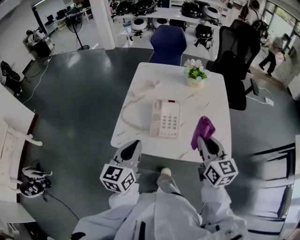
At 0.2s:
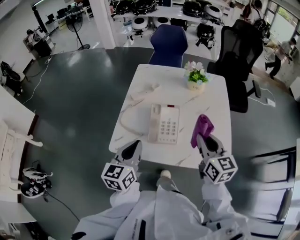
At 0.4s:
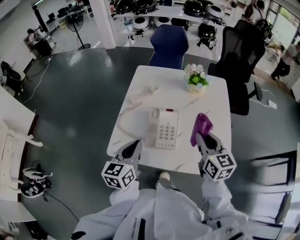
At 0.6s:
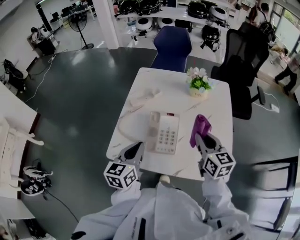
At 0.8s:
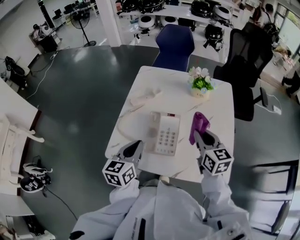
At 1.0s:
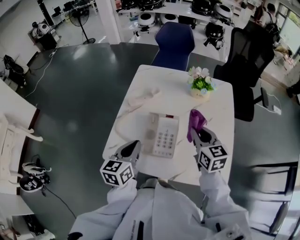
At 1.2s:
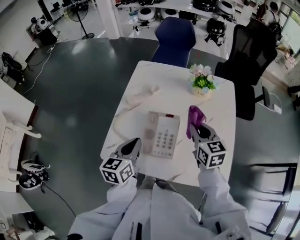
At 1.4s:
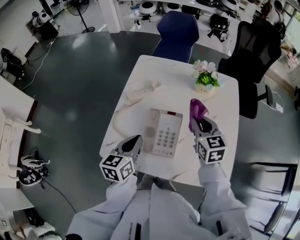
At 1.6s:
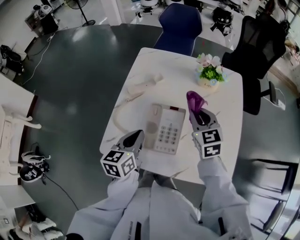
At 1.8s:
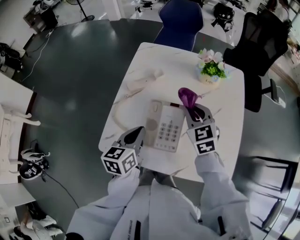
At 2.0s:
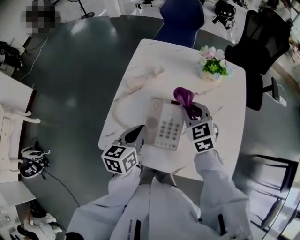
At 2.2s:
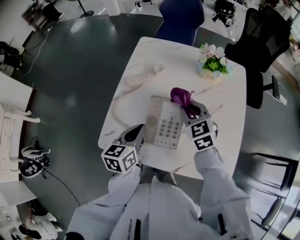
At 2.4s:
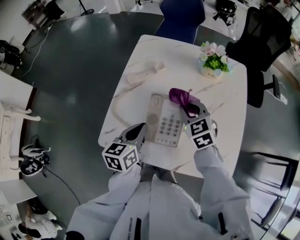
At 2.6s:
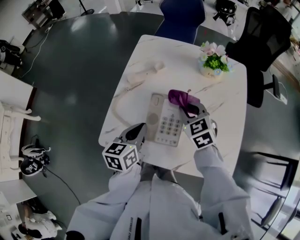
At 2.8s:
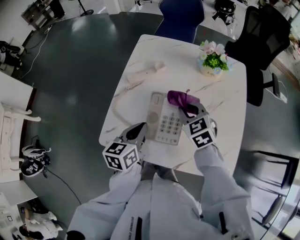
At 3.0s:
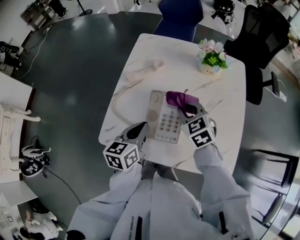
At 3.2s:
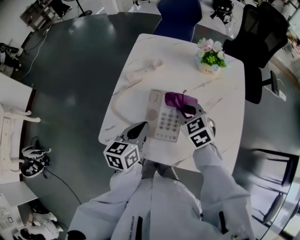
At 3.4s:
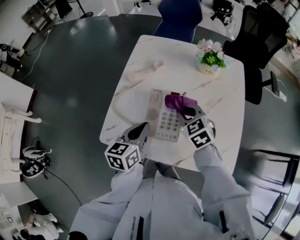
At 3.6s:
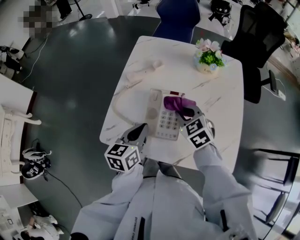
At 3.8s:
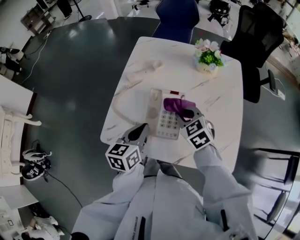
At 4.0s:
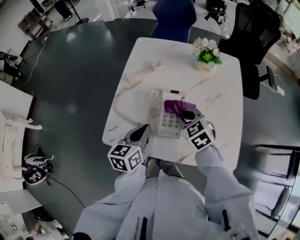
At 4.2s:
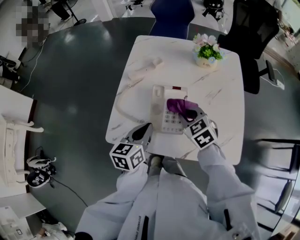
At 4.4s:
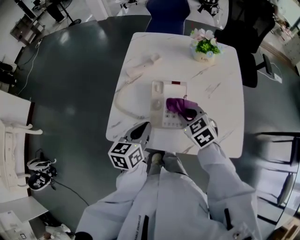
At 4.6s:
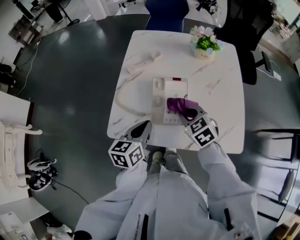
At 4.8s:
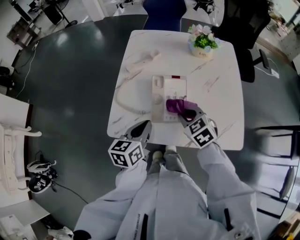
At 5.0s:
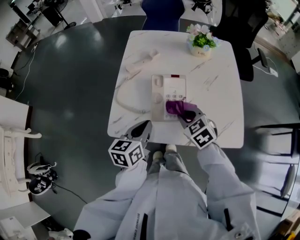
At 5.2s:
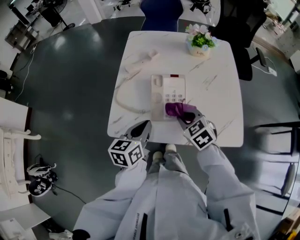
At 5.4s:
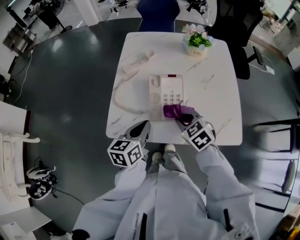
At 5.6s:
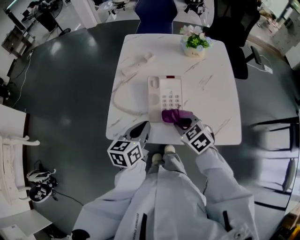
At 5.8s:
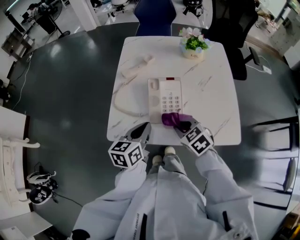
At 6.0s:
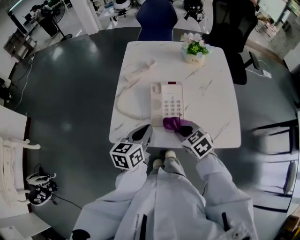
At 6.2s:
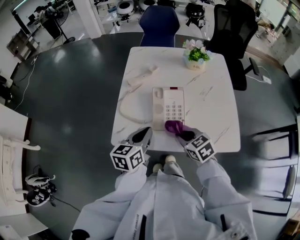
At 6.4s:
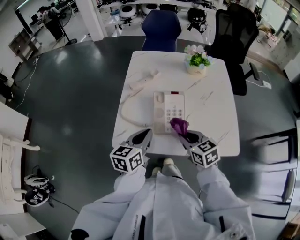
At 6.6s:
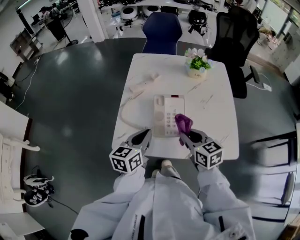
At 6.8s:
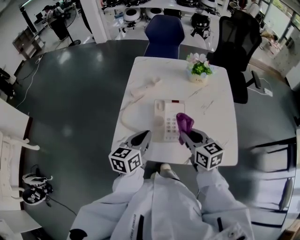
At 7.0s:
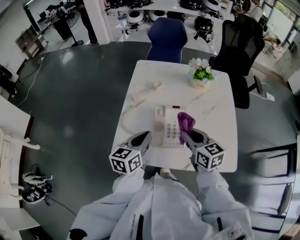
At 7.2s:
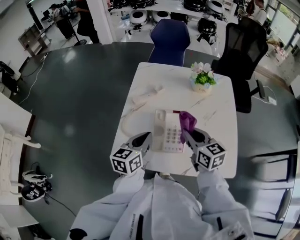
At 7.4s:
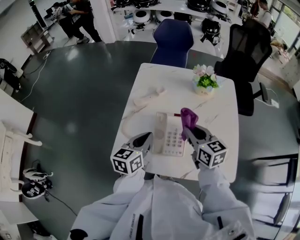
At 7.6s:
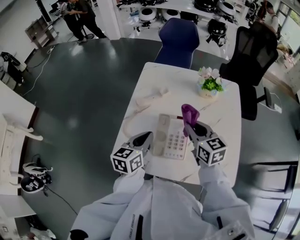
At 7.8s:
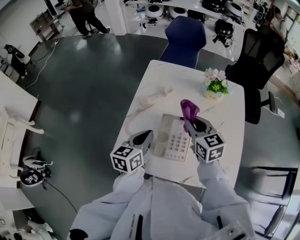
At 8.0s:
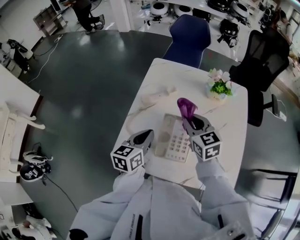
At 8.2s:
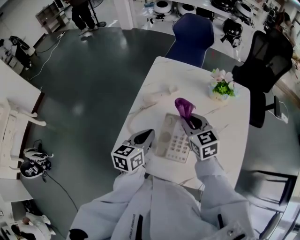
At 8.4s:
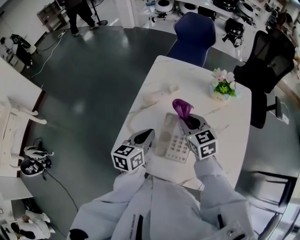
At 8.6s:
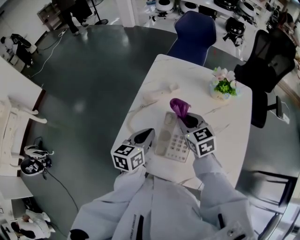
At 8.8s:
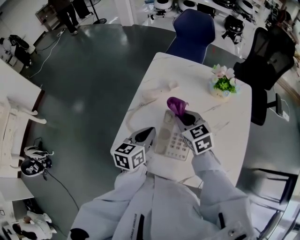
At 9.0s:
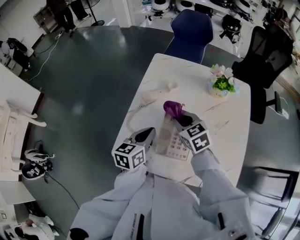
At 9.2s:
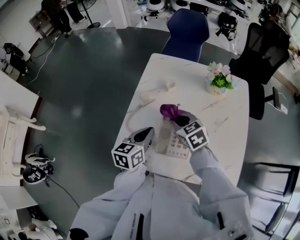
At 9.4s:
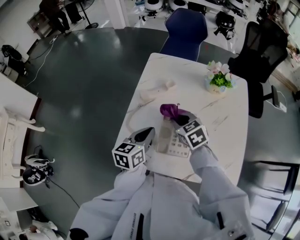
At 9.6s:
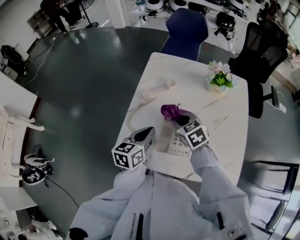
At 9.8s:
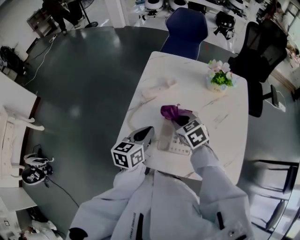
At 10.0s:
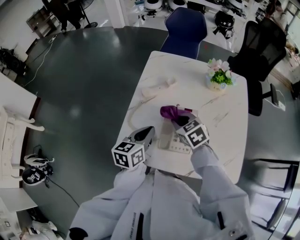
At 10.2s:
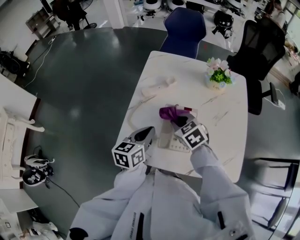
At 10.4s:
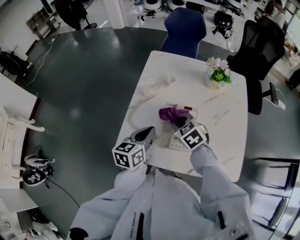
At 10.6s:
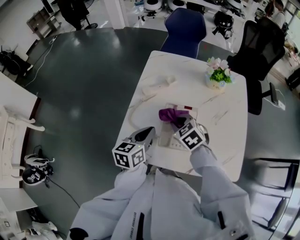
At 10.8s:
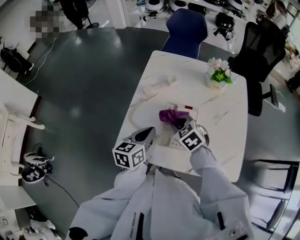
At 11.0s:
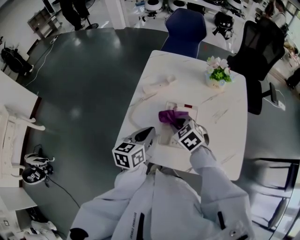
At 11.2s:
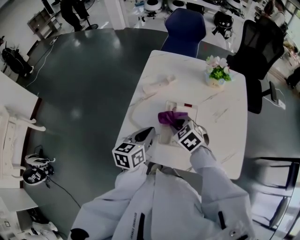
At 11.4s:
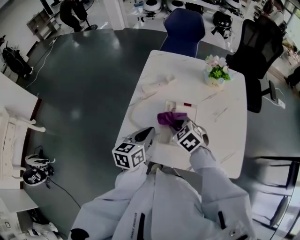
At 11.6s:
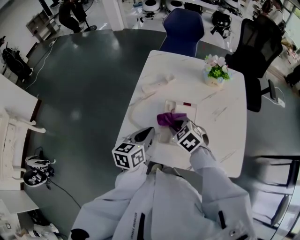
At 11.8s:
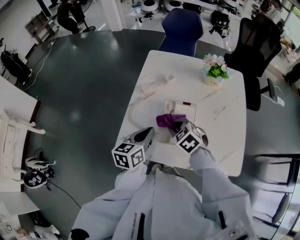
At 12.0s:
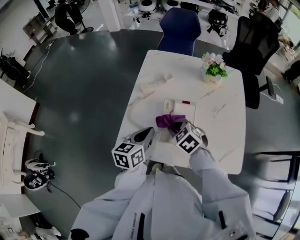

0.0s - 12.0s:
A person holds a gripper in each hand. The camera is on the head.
0.0s - 1.6s: Both grippers travel together forward and downward, about 20 cm. The right gripper turns by roughly 30 degrees.
1.6s - 3.0s: The right gripper moves downward and to the left, roughly 10 cm.
3.0s - 4.4s: The right gripper is displaced backward by about 10 cm.
4.4s - 6.0s: The right gripper goes roughly 10 cm backward.
6.0s - 7.6s: The right gripper travels forward and upward by roughly 20 cm, and swivels about 30 degrees, while the left gripper moves forward, approximately 10 cm.
7.6s - 9.0s: The right gripper moves to the left and downward, roughly 10 cm, and changes its angle by about 20 degrees.
9.0s - 10.4s: The right gripper ends up approximately 5 cm from where it was.
10.4s - 12.0s: The right gripper moves backward, roughly 5 cm.

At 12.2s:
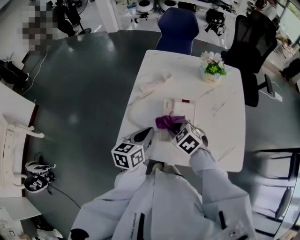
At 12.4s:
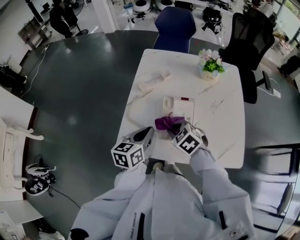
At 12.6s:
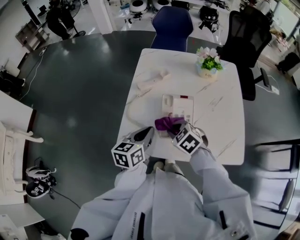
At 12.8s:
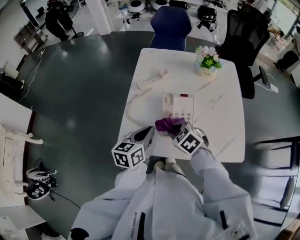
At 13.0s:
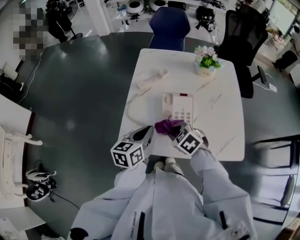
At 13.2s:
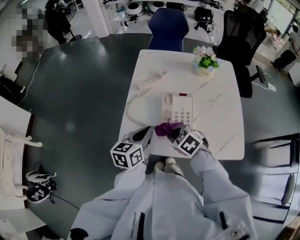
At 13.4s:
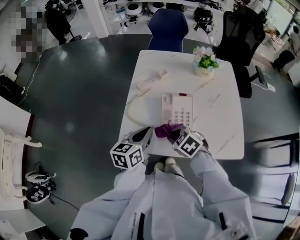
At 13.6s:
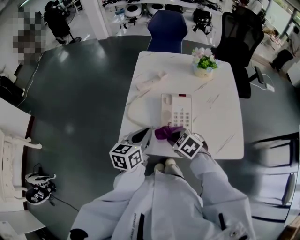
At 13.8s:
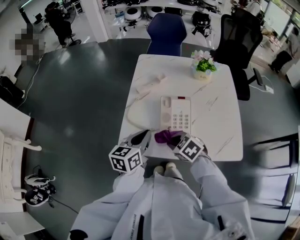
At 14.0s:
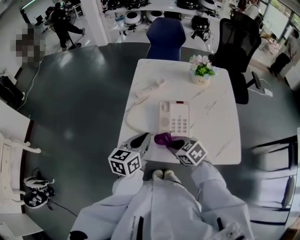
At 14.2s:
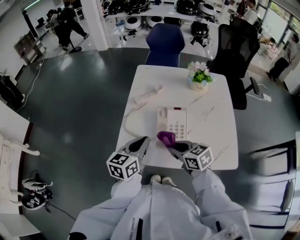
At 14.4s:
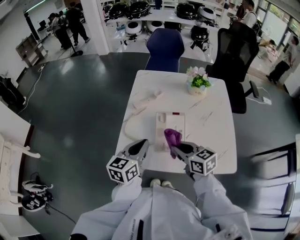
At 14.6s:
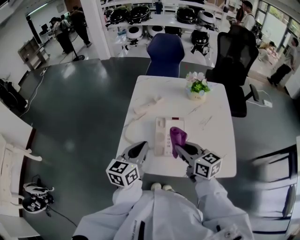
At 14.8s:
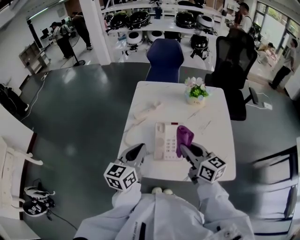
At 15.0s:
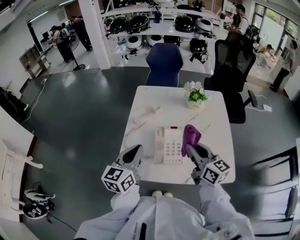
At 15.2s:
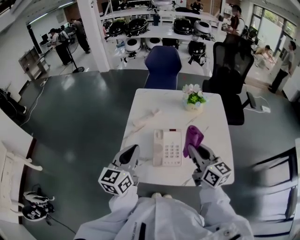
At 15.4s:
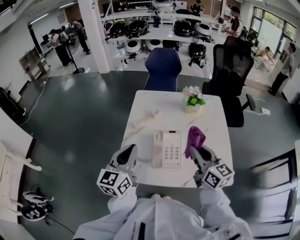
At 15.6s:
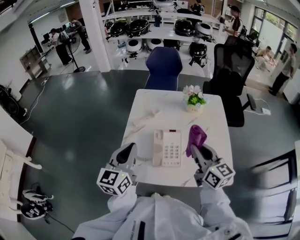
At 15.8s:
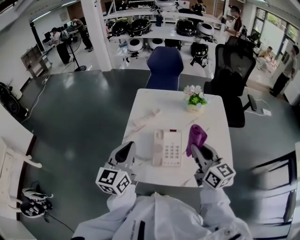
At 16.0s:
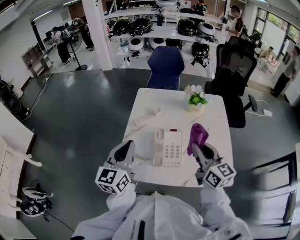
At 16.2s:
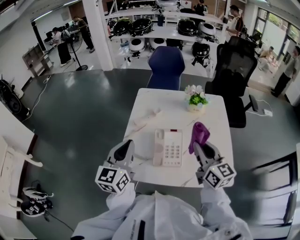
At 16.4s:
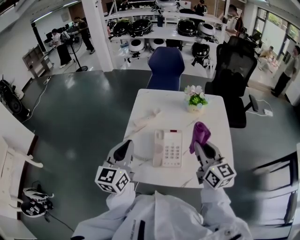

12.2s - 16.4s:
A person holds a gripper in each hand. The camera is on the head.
12.2s - 13.6s: The right gripper goes roughly 10 cm backward.
13.6s - 15.0s: The left gripper shifts roughly 10 cm upward, while the right gripper moves upward and to the right, some 25 cm, and tips its fingers upward by approximately 50 degrees.
15.0s - 16.4s: The left gripper ends up approximately 5 cm from where it was. Meanwhile the right gripper changes place by about 5 cm.

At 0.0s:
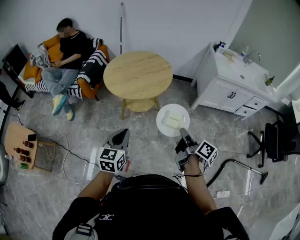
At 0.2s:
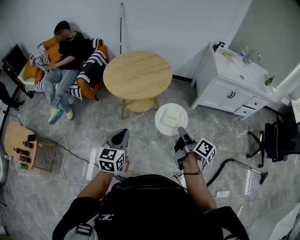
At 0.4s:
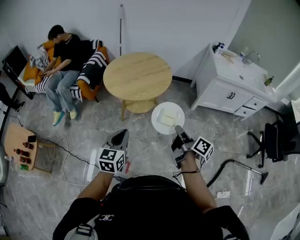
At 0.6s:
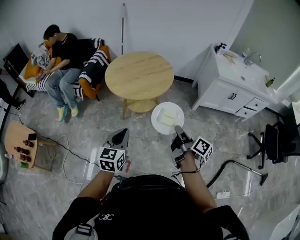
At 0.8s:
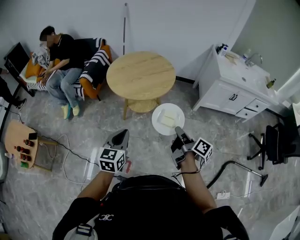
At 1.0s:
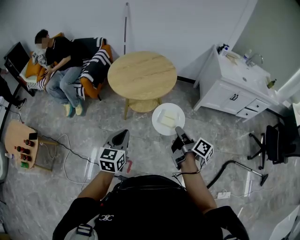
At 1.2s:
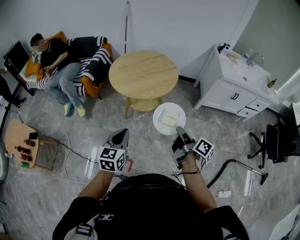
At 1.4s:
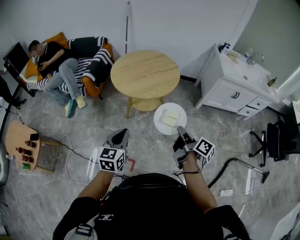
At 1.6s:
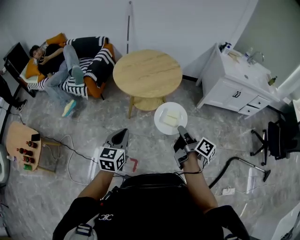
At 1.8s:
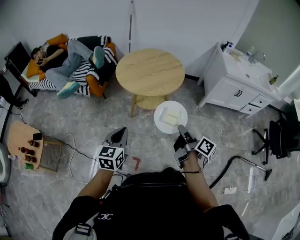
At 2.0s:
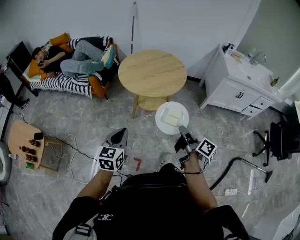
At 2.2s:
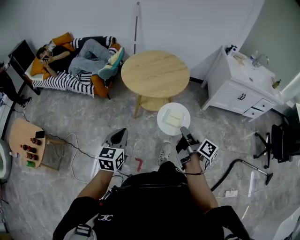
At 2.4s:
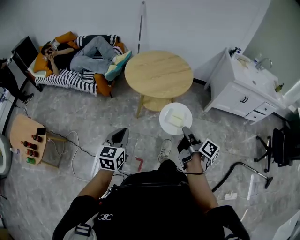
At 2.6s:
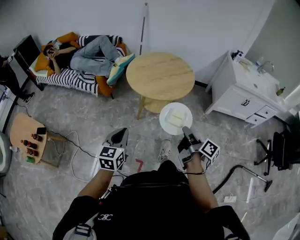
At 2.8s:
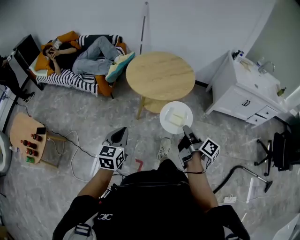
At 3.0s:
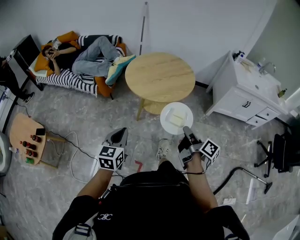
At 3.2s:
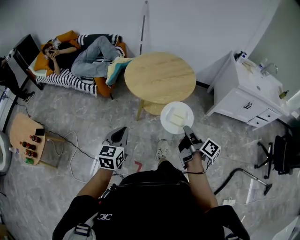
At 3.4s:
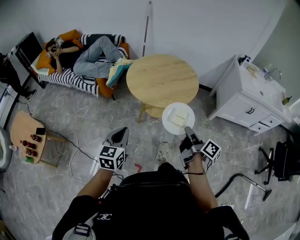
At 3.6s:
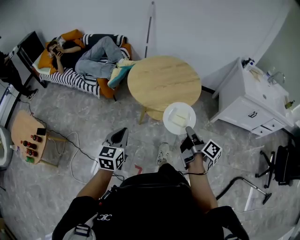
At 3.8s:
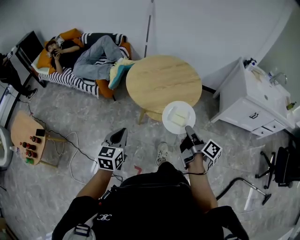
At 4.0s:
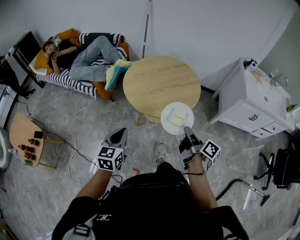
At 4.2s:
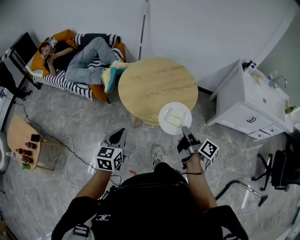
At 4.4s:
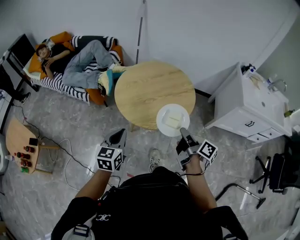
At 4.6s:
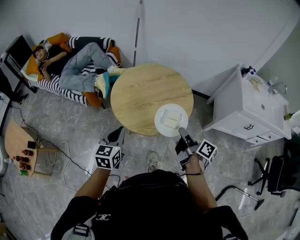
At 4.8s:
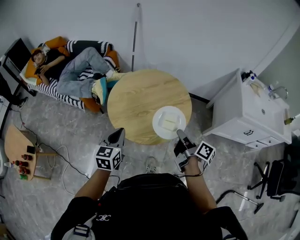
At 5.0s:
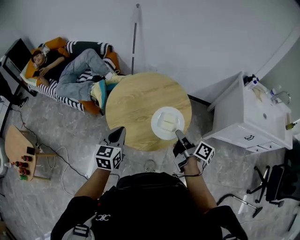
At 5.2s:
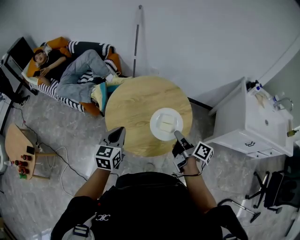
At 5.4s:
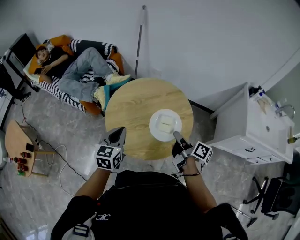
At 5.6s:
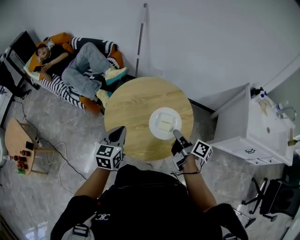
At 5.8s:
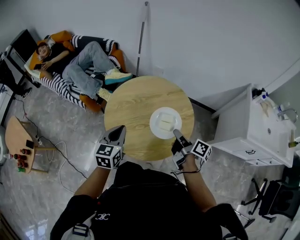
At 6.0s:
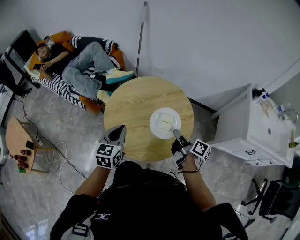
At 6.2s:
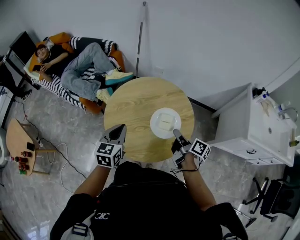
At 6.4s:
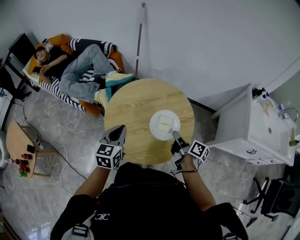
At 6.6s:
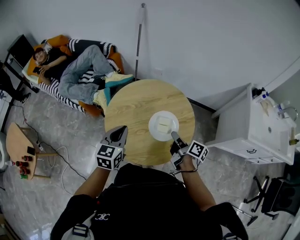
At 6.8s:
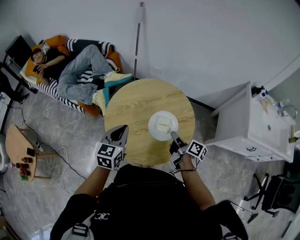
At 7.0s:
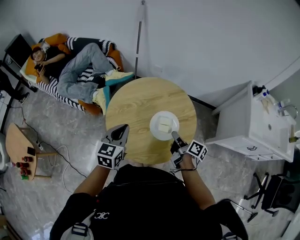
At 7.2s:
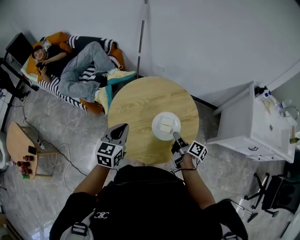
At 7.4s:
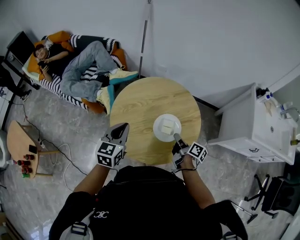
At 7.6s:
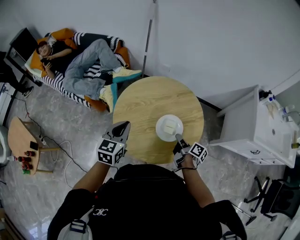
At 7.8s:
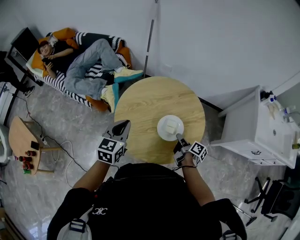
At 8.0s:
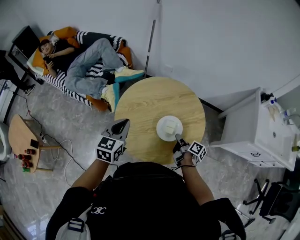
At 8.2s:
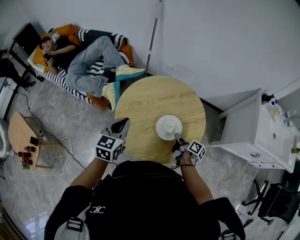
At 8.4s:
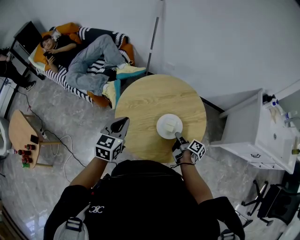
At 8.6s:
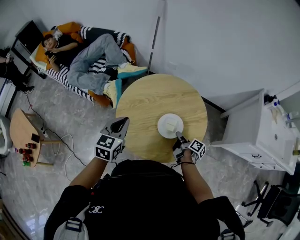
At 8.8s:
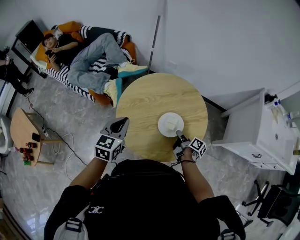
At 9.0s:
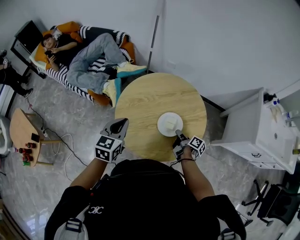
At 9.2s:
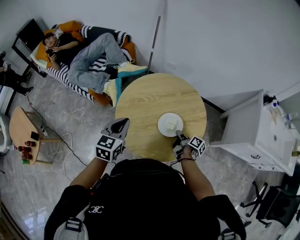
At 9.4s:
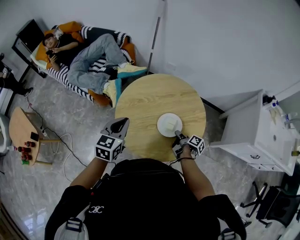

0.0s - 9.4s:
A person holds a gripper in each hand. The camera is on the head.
0.0s - 1.6s: The two grippers go about 10 cm to the left.
1.6s - 3.2s: The right gripper travels forward by approximately 5 cm. Meanwhile the left gripper shifts by approximately 5 cm.
3.2s - 4.8s: Both grippers move forward, about 25 cm.
4.8s - 6.2s: The left gripper is displaced forward by some 10 cm, while the right gripper moves forward and downward, some 15 cm.
6.2s - 7.8s: The left gripper travels to the left by approximately 5 cm. Meanwhile the right gripper goes roughly 10 cm downward.
7.8s - 9.4s: The right gripper shifts roughly 5 cm downward.
